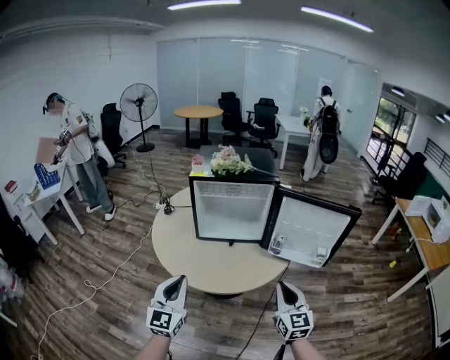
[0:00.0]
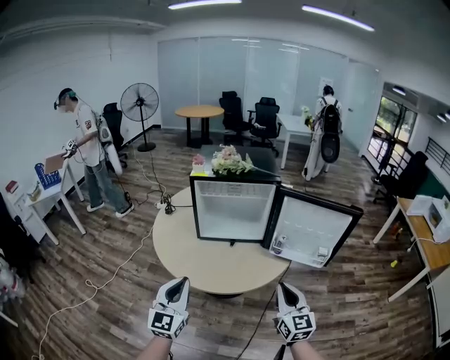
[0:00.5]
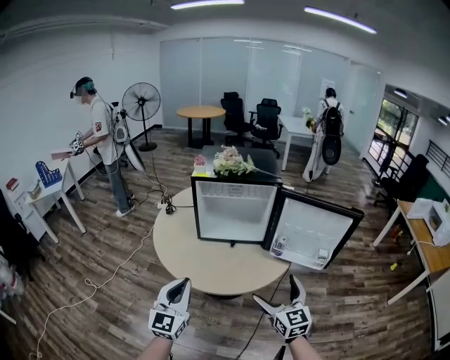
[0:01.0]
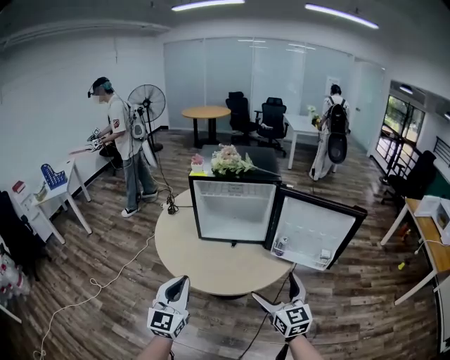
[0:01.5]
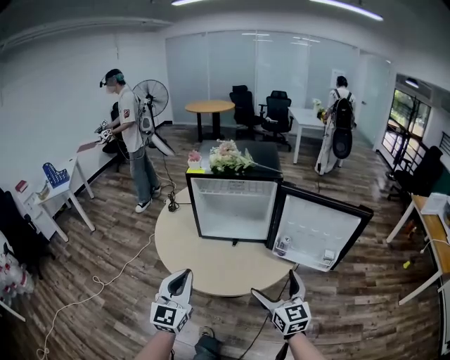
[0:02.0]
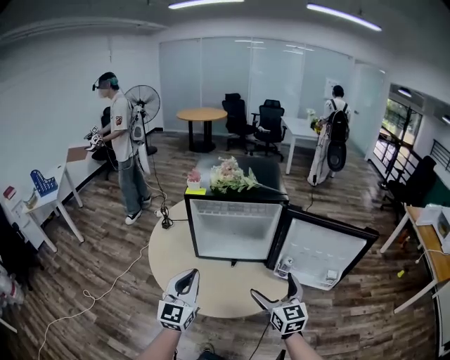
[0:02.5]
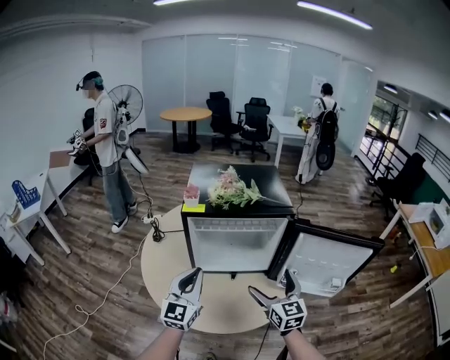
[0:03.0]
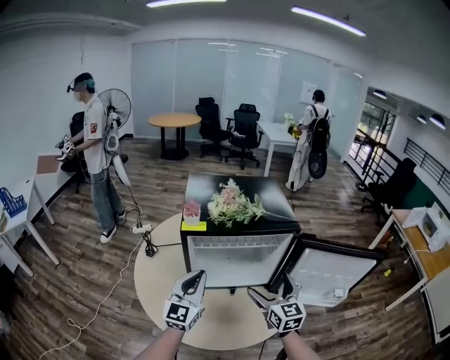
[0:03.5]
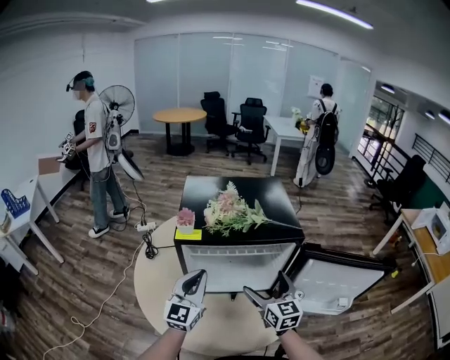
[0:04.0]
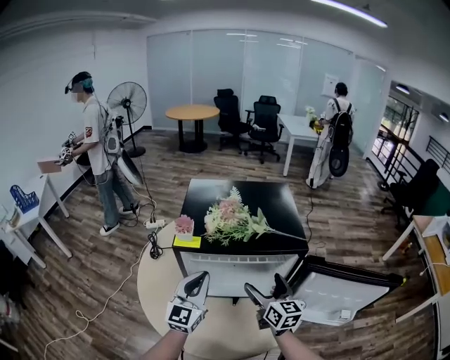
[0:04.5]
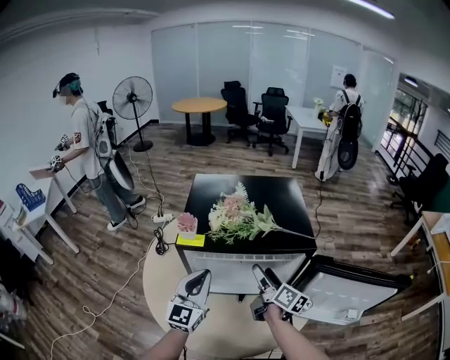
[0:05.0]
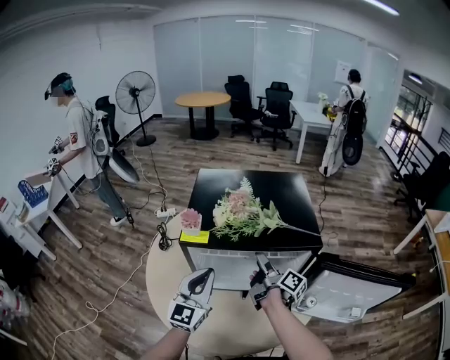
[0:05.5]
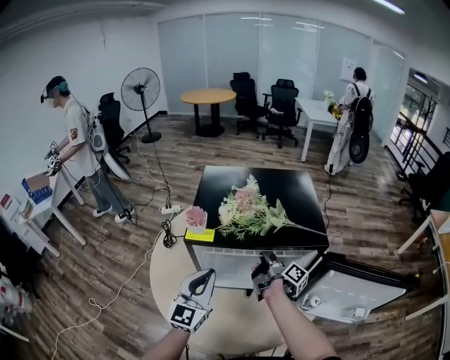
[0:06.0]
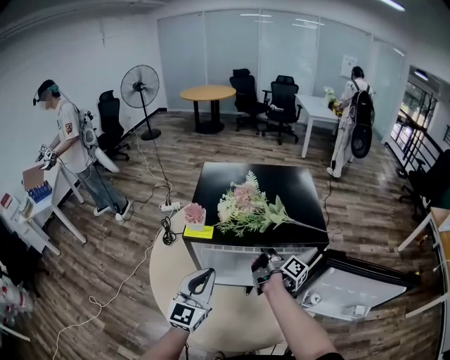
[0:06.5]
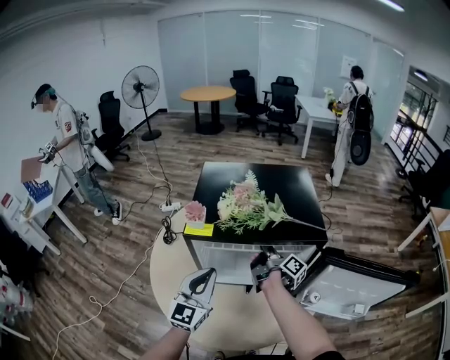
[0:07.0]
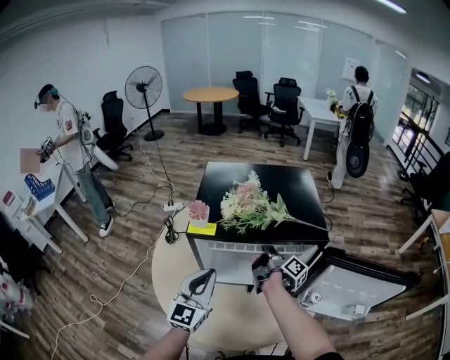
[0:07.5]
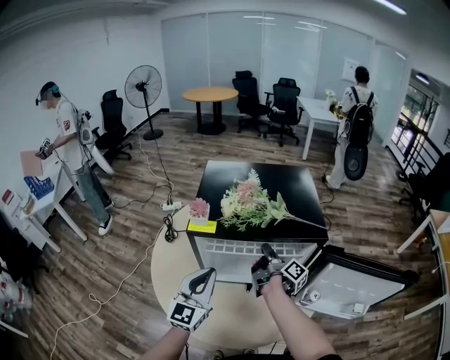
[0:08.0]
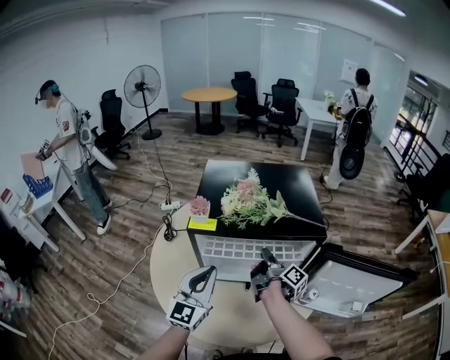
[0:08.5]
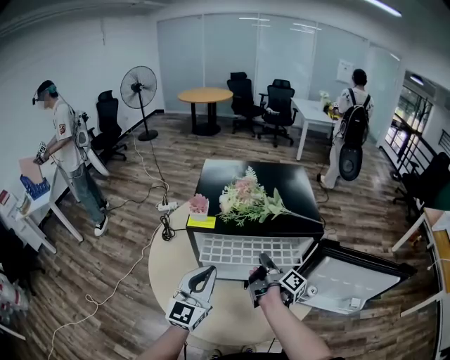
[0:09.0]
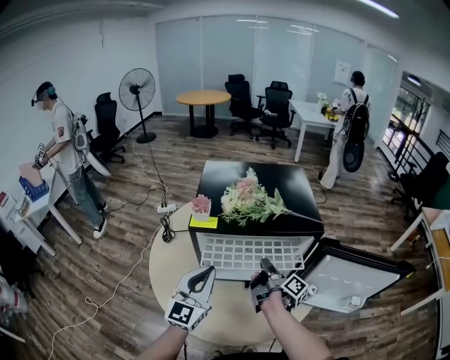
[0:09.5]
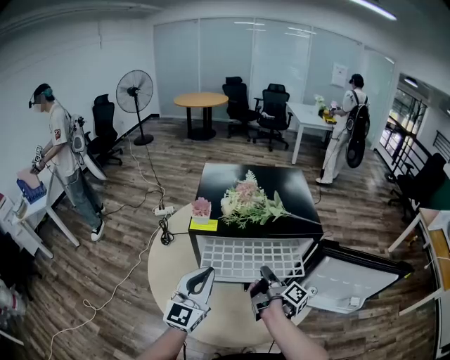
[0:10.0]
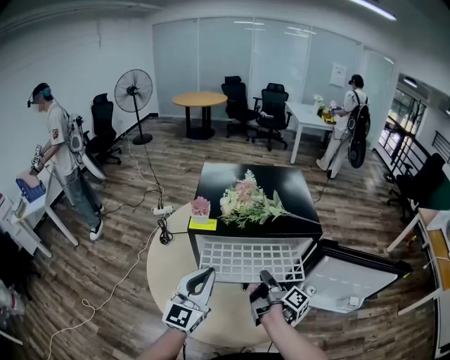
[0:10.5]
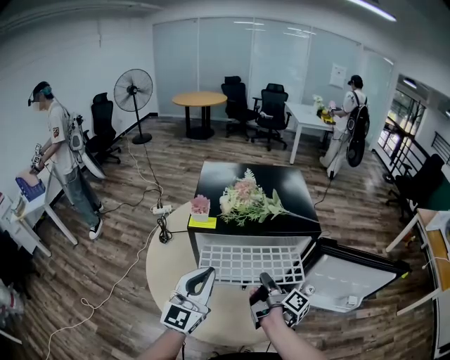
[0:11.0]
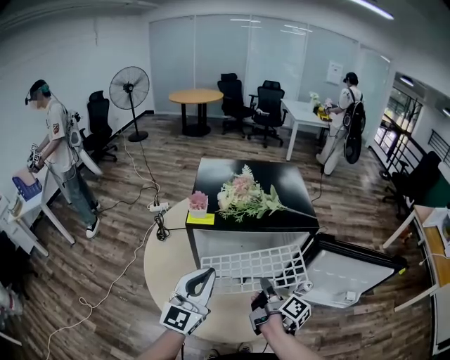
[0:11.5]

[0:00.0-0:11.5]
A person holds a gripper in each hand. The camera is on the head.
0:00.0 to 0:02.0: The right gripper goes approximately 5 cm forward, and opens, while the left gripper goes about 5 cm to the right.
0:02.0 to 0:04.0: The grippers both shift forward by approximately 35 cm.
0:04.0 to 0:06.0: The right gripper goes roughly 15 cm forward and downward, rolls clockwise, seen from behind, by approximately 90 degrees, and closes up.
0:06.0 to 0:07.5: The grippers make only small movements.
0:07.5 to 0:09.5: The right gripper goes approximately 10 cm backward.
0:09.5 to 0:11.5: The right gripper travels backward by some 10 cm.

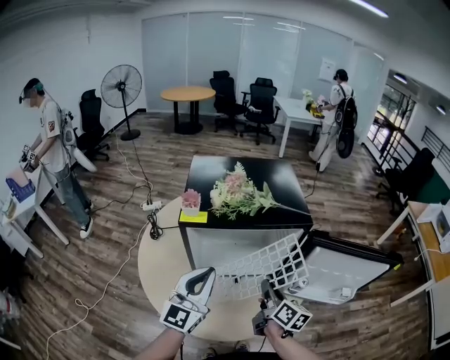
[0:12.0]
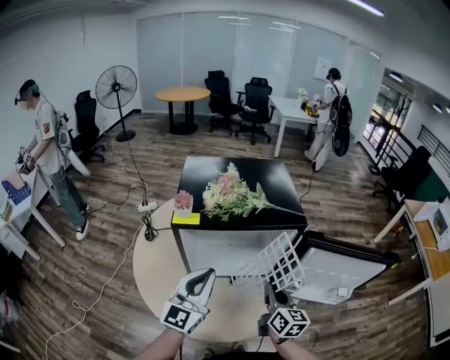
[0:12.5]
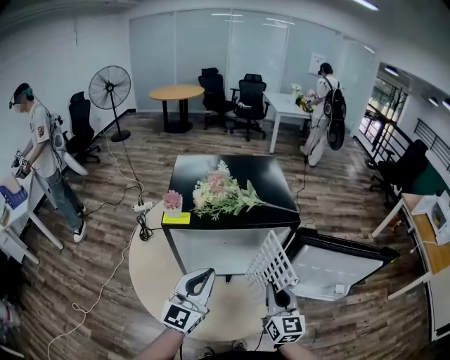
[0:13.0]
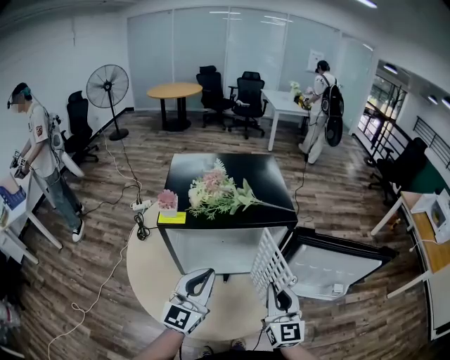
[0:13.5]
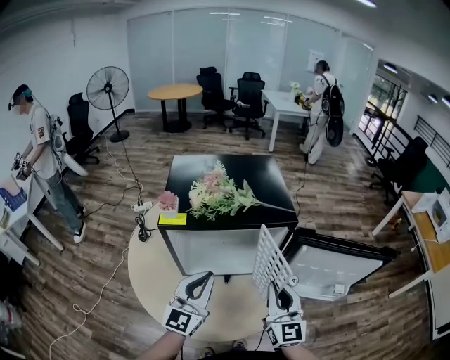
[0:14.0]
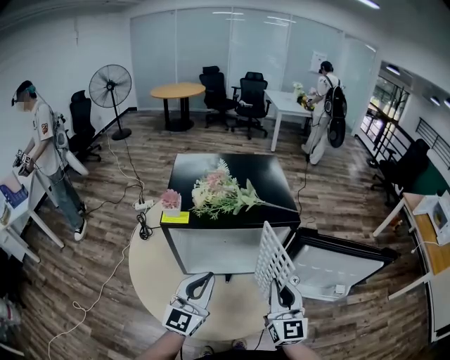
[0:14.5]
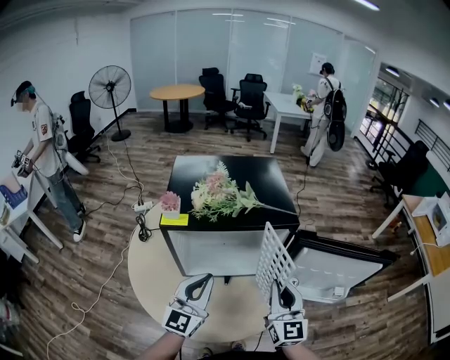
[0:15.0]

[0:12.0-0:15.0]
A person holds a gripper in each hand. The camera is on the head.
0:12.0 to 0:13.5: The right gripper moves upward and to the right, approximately 10 cm, and rolls counterclockwise, seen from behind, by about 50 degrees. Meanwhile the left gripper moves some 5 cm.
0:13.5 to 0:15.0: The grippers move only a little.

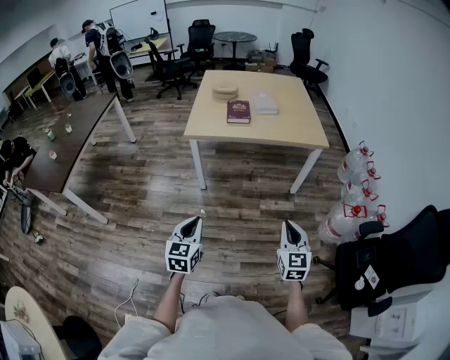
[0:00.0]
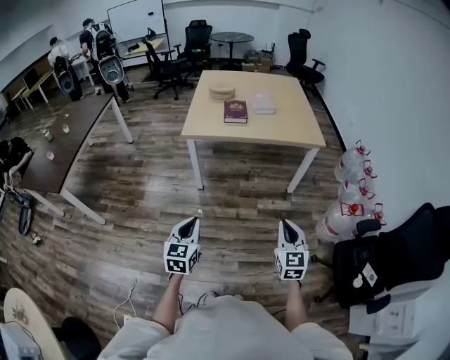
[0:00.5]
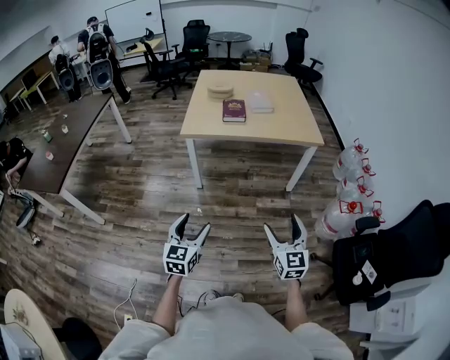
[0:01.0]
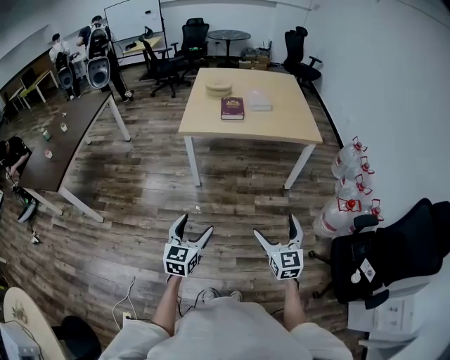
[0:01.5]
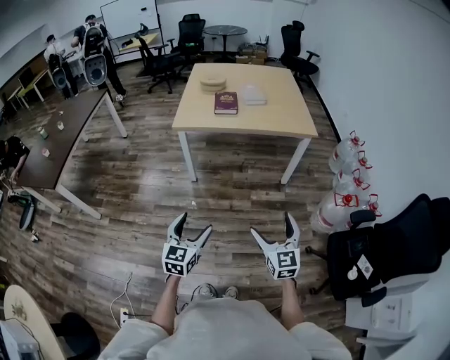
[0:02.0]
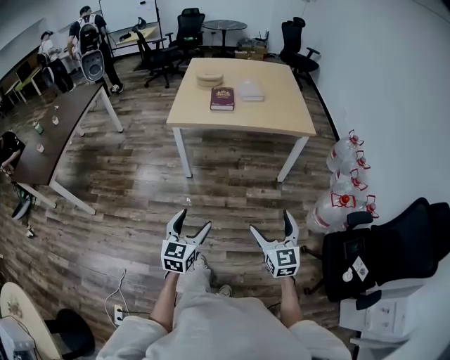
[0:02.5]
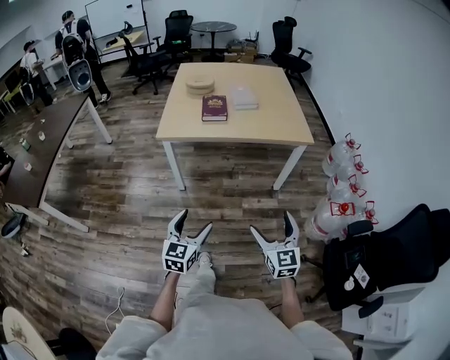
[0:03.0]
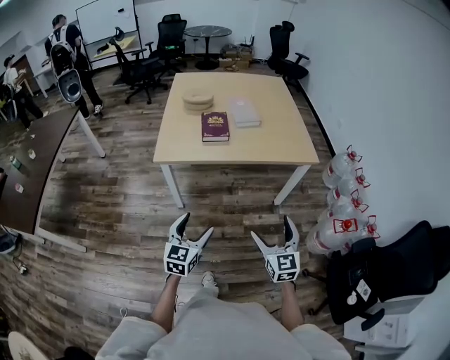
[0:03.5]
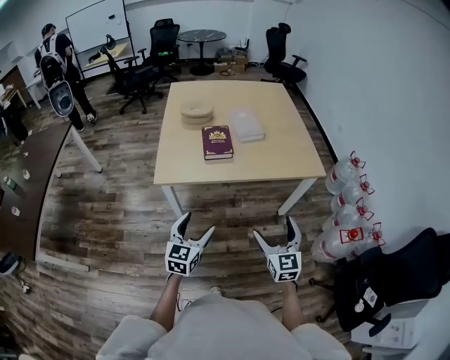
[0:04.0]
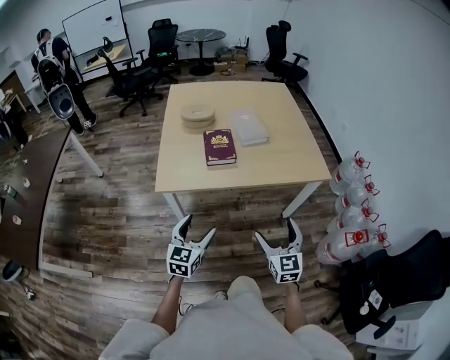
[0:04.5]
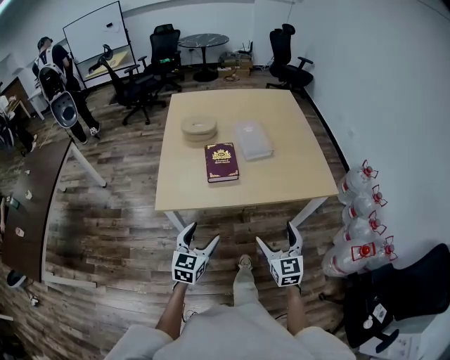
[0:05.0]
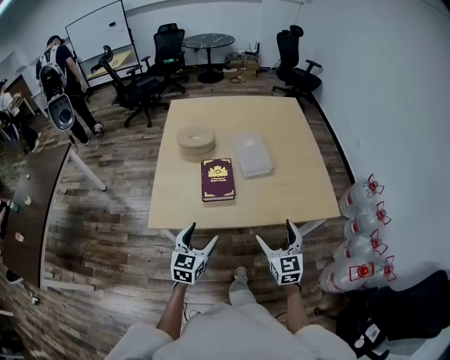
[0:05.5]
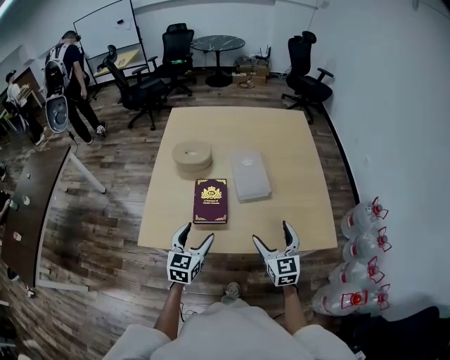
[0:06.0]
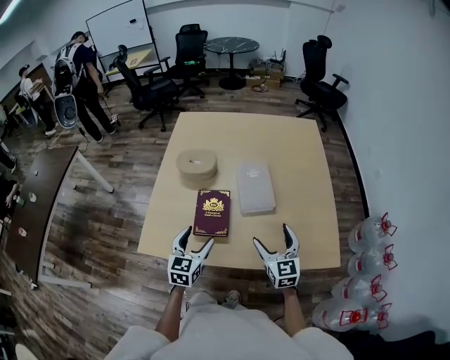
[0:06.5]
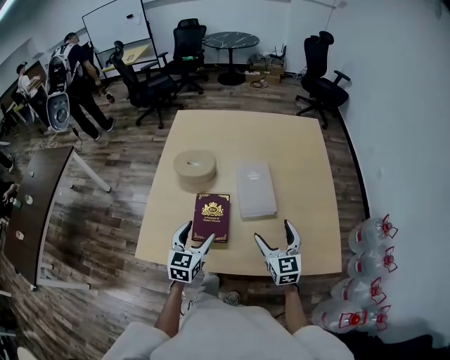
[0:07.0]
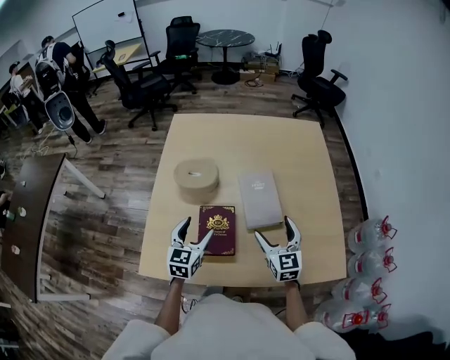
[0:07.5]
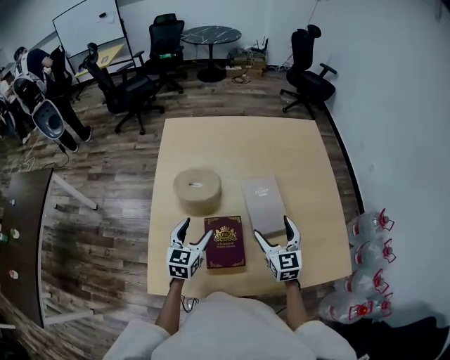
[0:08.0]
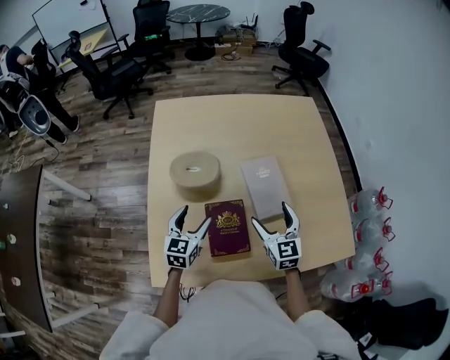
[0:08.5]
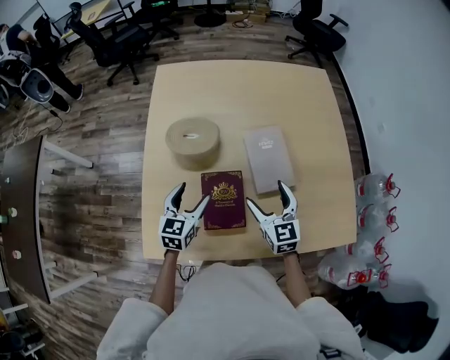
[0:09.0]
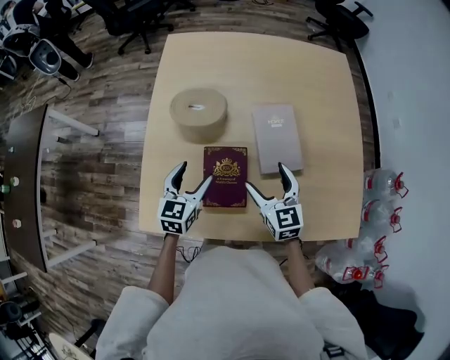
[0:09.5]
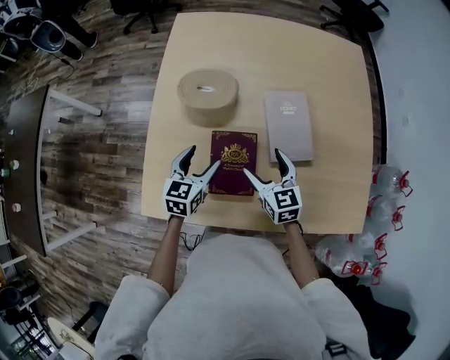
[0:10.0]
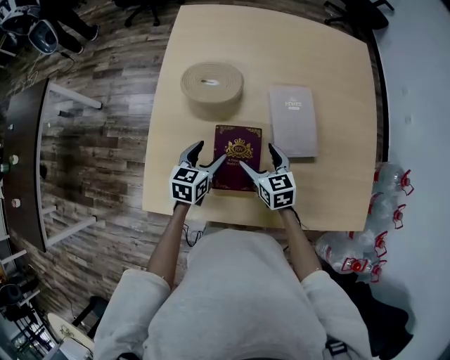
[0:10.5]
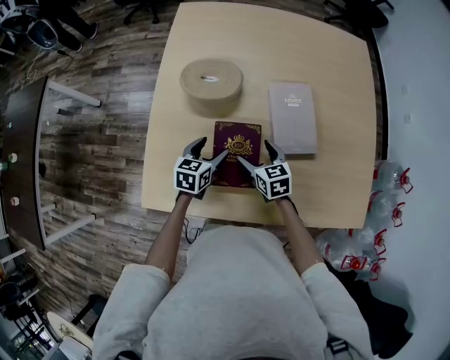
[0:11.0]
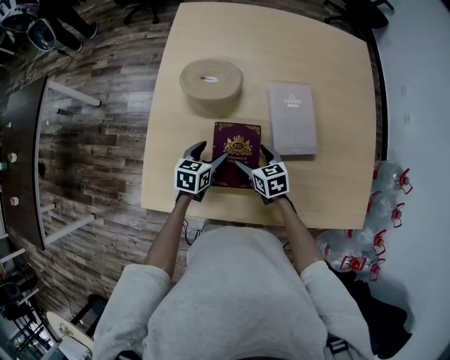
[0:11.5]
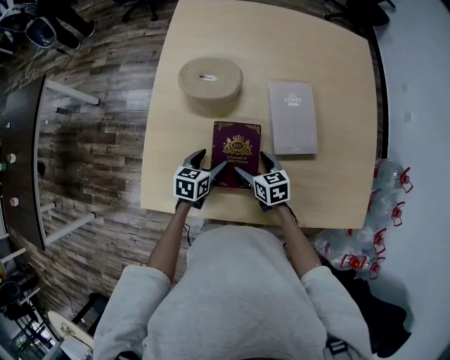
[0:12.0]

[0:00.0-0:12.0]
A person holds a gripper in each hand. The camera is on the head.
0:00.0 to 0:02.0: The left gripper moves to the right, approximately 5 cm, and opens. The right gripper opens its fingers.
0:02.0 to 0:04.0: Both grippers move forward, roughly 35 cm.
0:04.0 to 0:06.0: The grippers both shift forward by approximately 35 cm.
0:06.0 to 0:08.0: The grippers both shift forward by about 20 cm.
0:08.0 to 0:10.0: The right gripper moves downward and to the left, roughly 10 cm, and rotates roughly 20 degrees. The left gripper goes about 5 cm downward.
0:10.0 to 0:12.0: Both grippers move downward, about 10 cm. The right gripper rotates approximately 30 degrees, while the left gripper changes its angle by roughly 20 degrees.
